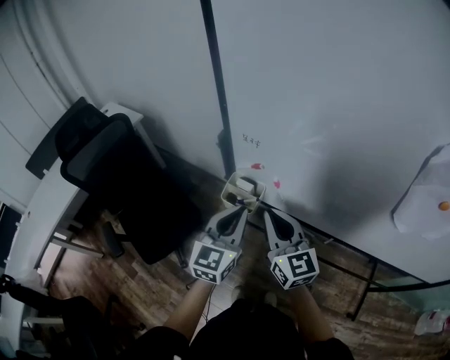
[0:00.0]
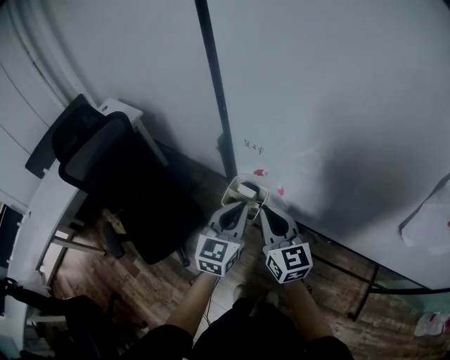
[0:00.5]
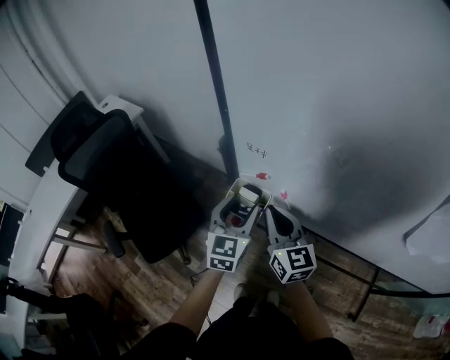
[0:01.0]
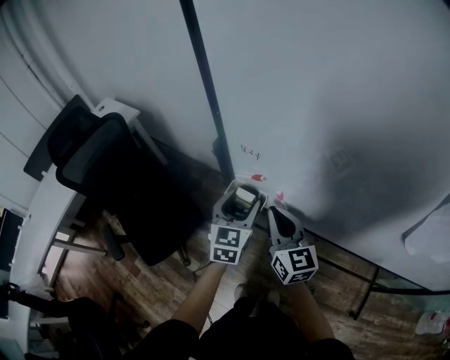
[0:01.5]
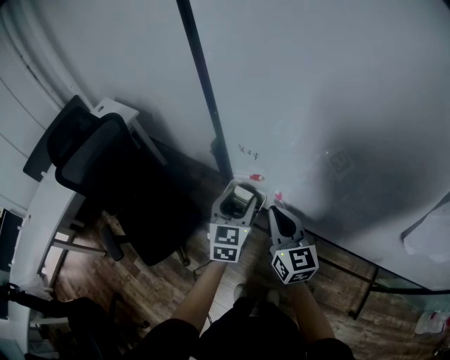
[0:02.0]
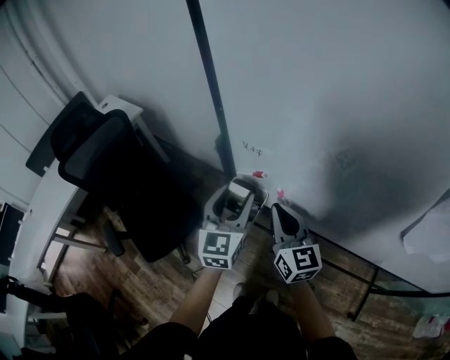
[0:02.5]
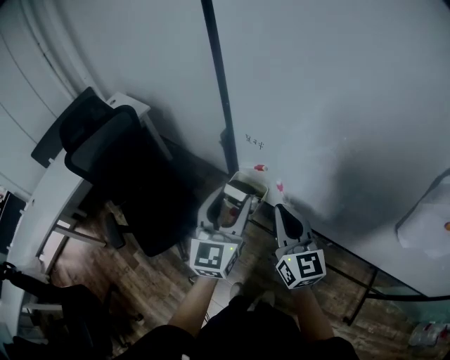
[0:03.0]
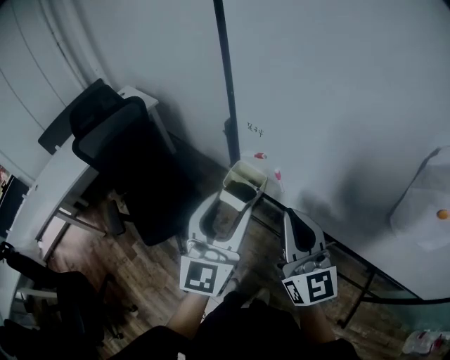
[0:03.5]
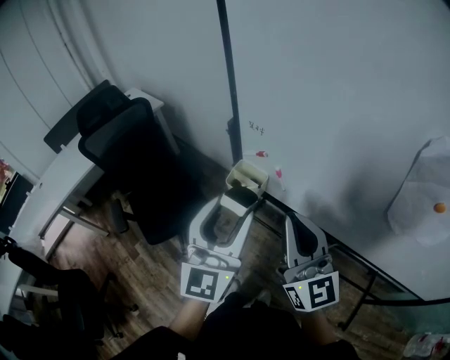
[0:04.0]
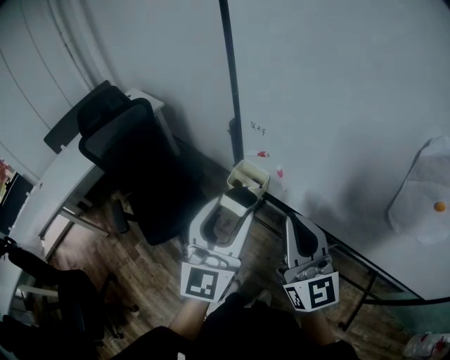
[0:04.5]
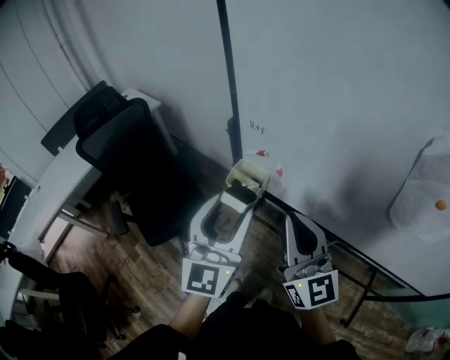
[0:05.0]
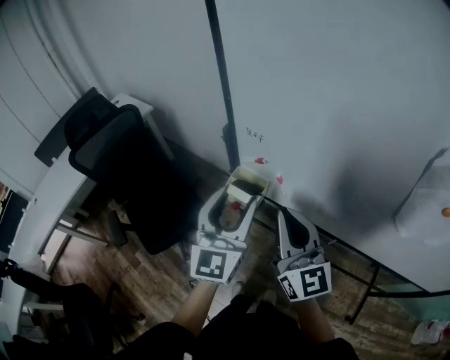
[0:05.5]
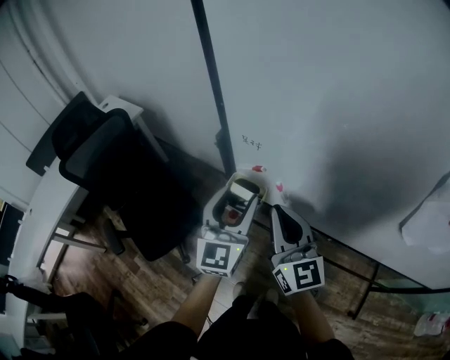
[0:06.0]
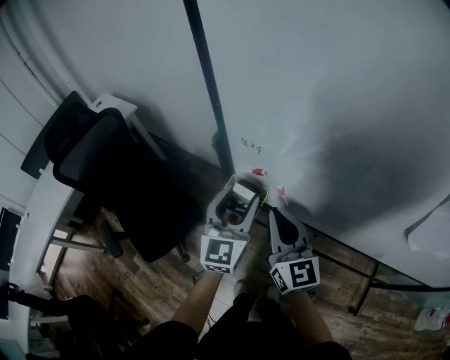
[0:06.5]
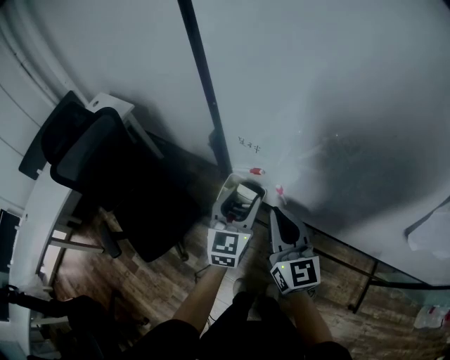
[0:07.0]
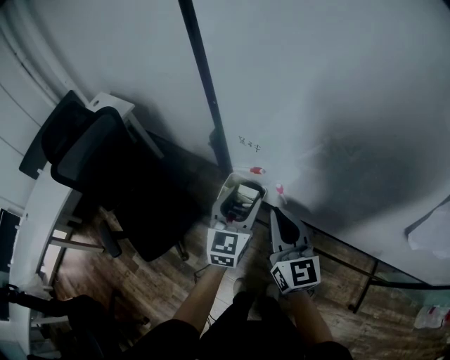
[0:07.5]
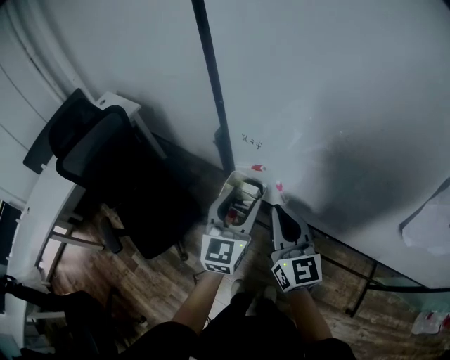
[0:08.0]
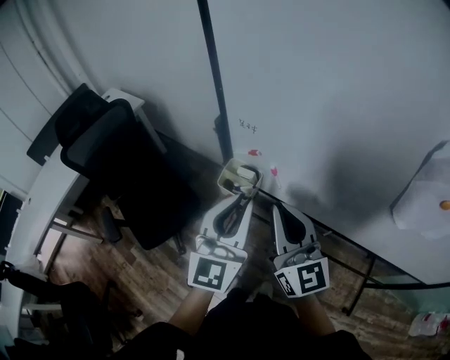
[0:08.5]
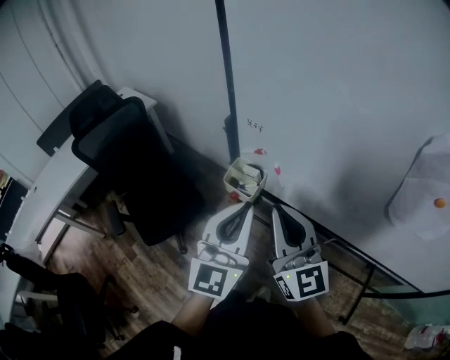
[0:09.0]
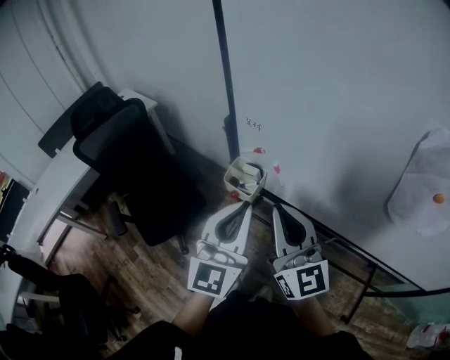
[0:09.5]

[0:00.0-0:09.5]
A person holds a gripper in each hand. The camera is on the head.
0:00.0 to 0:02.0: The left gripper shifts roughly 15 cm forward and downward, and opens its fingers; the right gripper travels forward and downward by about 10 cm.
0:02.0 to 0:04.0: Both grippers move backward and upward, approximately 25 cm. The left gripper changes its angle by roughly 30 degrees; the right gripper swivels approximately 20 degrees.
0:04.0 to 0:05.5: The two grippers go some 5 cm forward.
0:05.5 to 0:07.5: The grippers both shift downward and forward by approximately 15 cm.
0:07.5 to 0:09.5: The two grippers go about 20 cm backward and upward. The left gripper closes up.

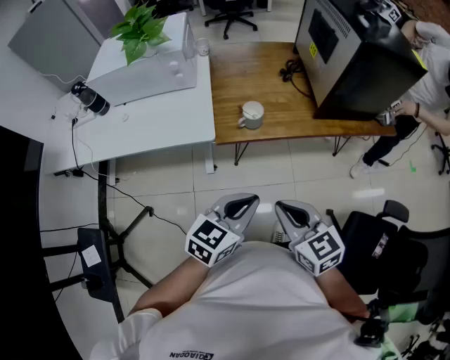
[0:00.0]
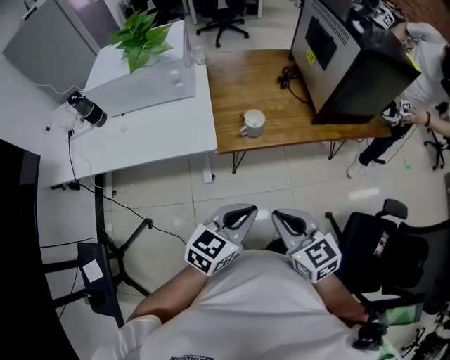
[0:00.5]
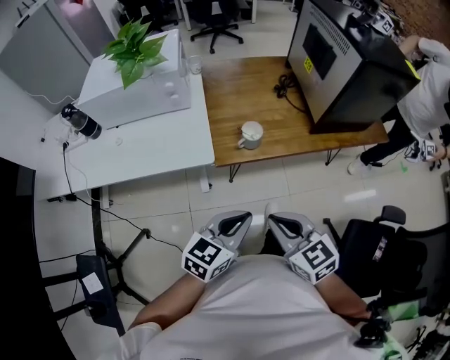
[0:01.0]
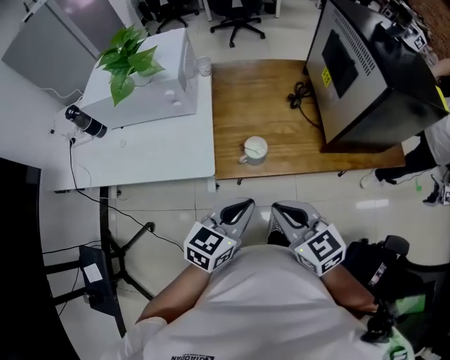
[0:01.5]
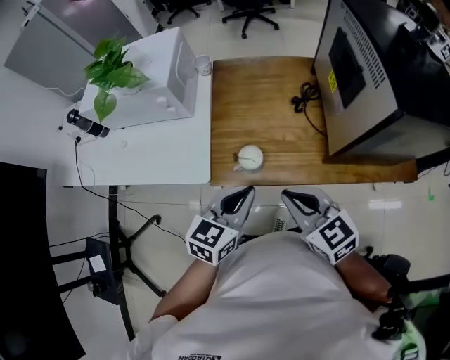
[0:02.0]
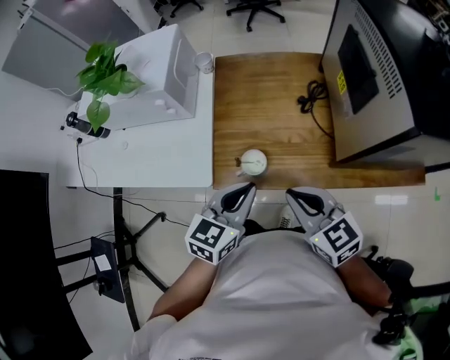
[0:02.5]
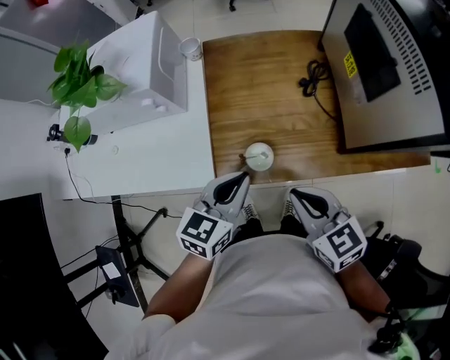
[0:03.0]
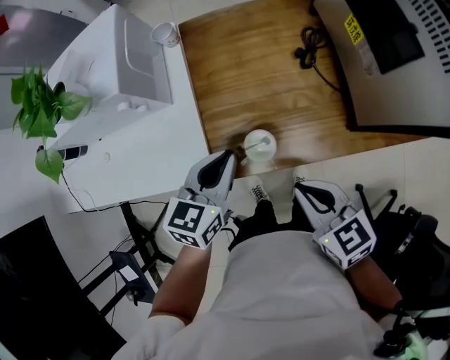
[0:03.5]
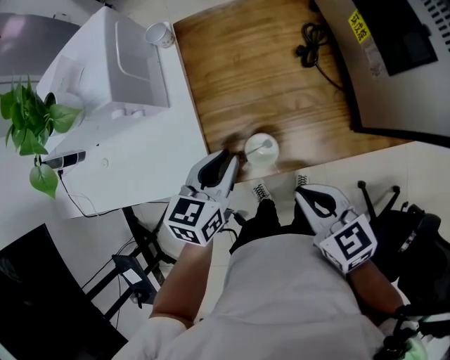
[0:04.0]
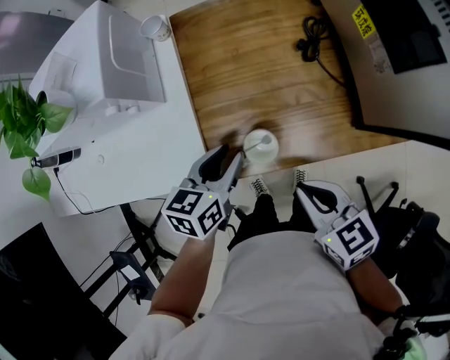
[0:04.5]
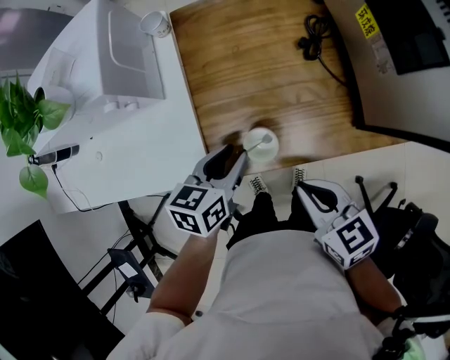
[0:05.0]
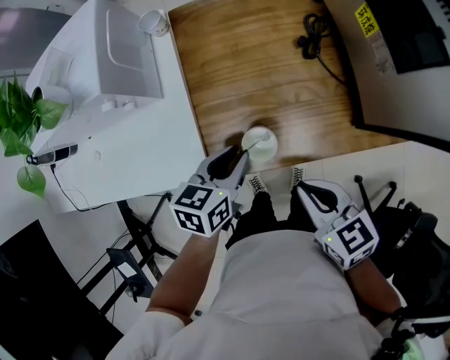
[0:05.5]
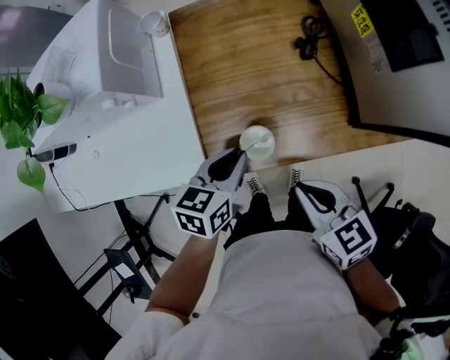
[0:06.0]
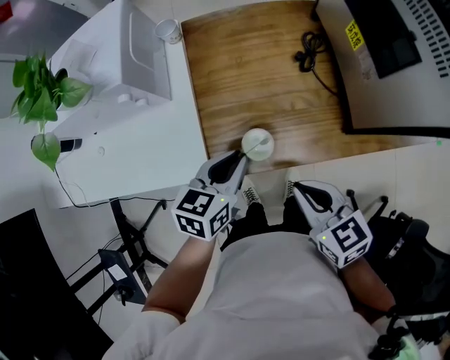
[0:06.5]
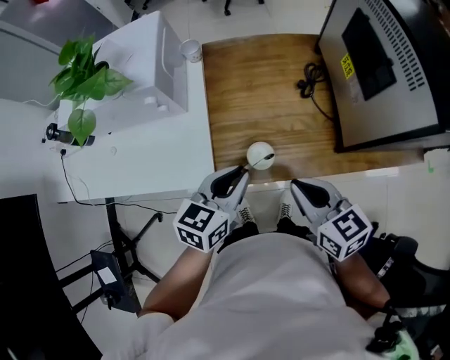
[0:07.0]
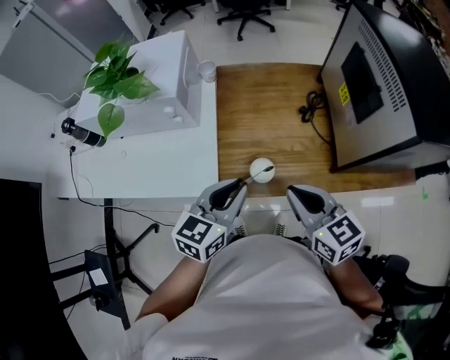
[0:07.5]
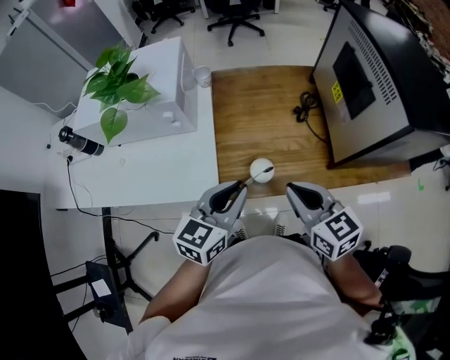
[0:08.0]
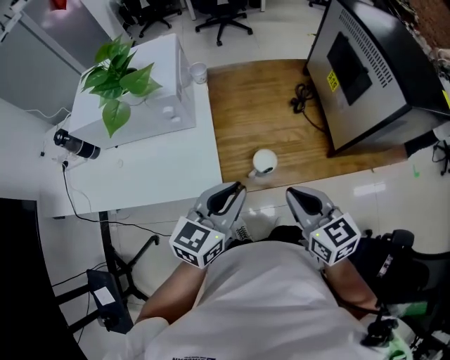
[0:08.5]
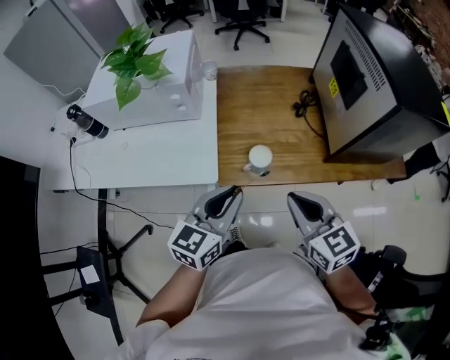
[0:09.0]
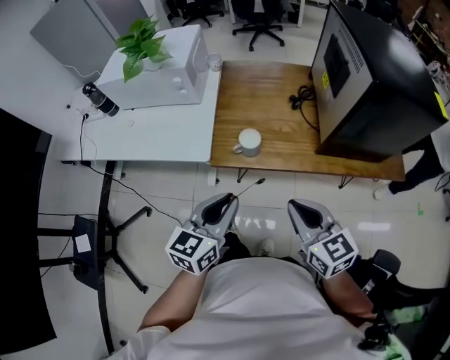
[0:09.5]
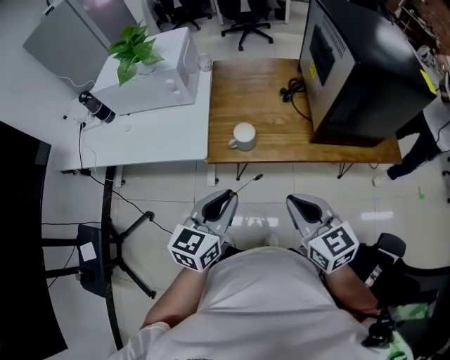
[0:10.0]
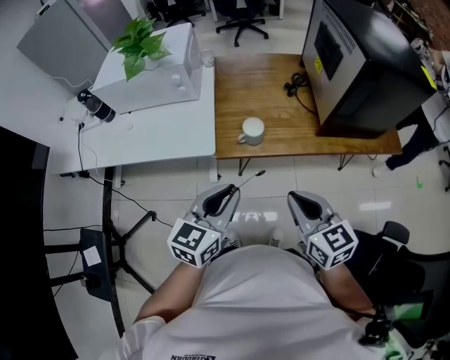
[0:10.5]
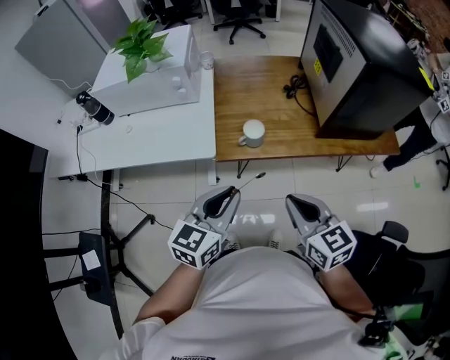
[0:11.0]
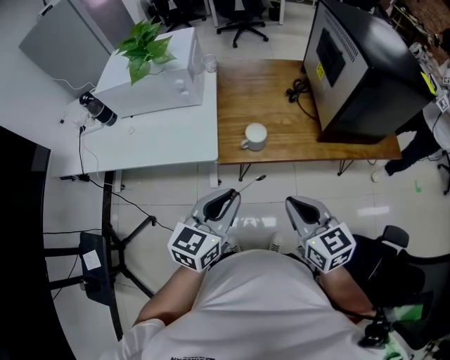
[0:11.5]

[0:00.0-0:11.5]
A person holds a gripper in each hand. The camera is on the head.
0:00.0 to 0:02.0: The grippers both shift forward by some 25 cm.
0:02.0 to 0:04.0: The left gripper moves forward, downward and to the left, some 20 cm; the right gripper goes approximately 10 cm downward, and turns by some 20 degrees.
0:04.0 to 0:06.0: The grippers make only small movements.
0:06.0 to 0:07.5: Both grippers move upward, approximately 15 cm. The left gripper swivels some 20 degrees.
0:07.5 to 0:09.5: The two grippers go approximately 20 cm backward.
0:09.5 to 0:11.5: The left gripper moves about 5 cm. Meanwhile the right gripper goes roughly 5 cm to the left.

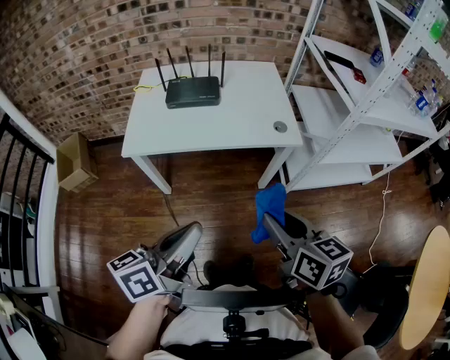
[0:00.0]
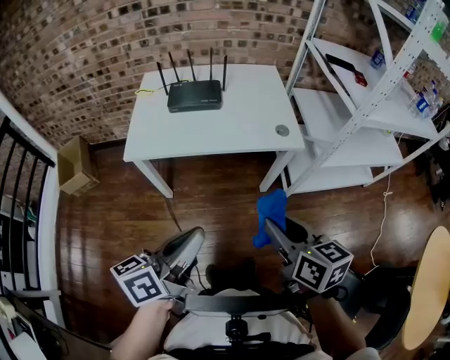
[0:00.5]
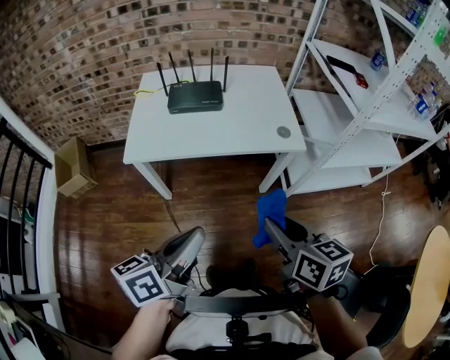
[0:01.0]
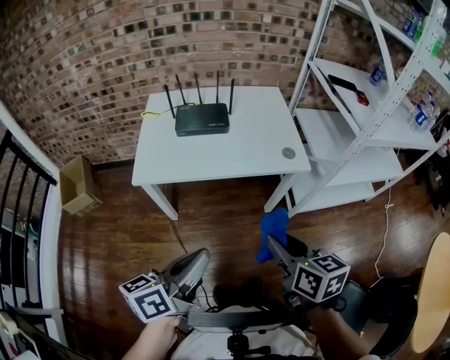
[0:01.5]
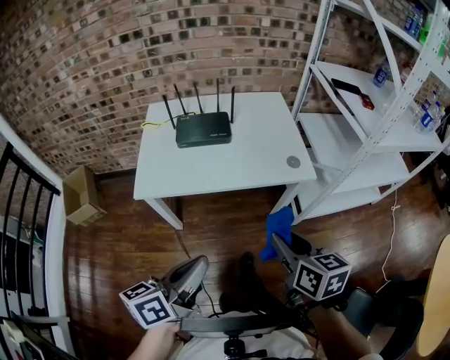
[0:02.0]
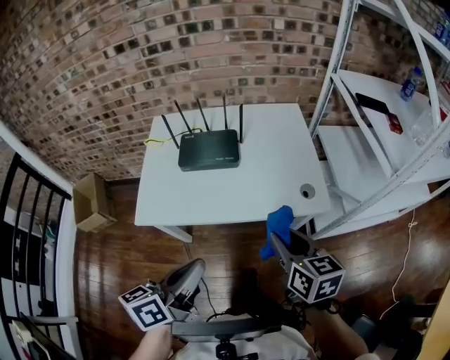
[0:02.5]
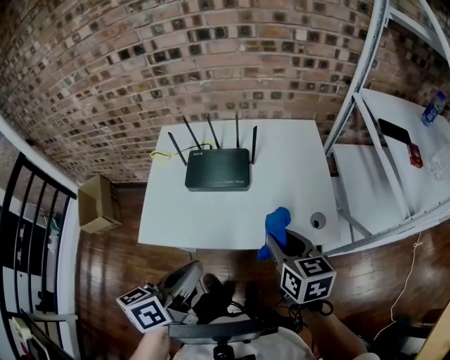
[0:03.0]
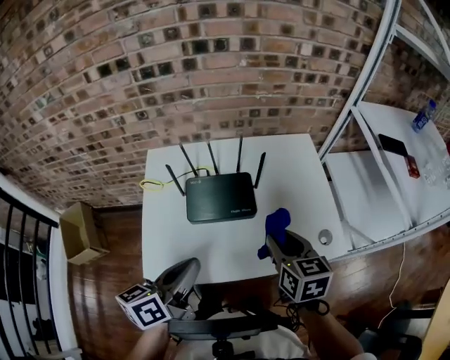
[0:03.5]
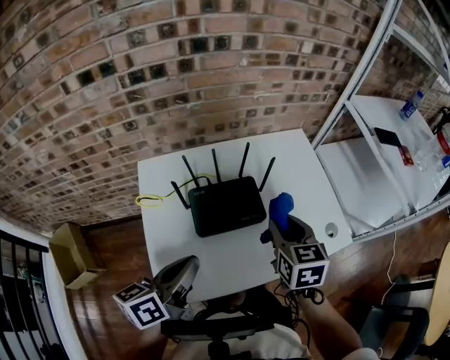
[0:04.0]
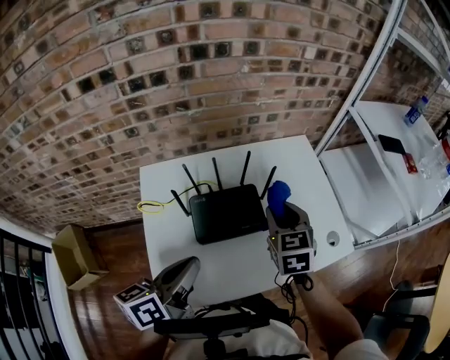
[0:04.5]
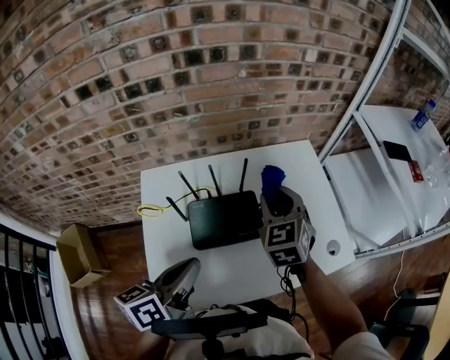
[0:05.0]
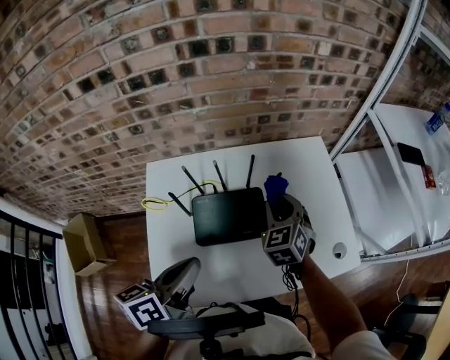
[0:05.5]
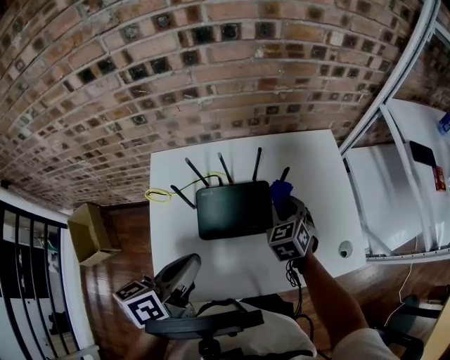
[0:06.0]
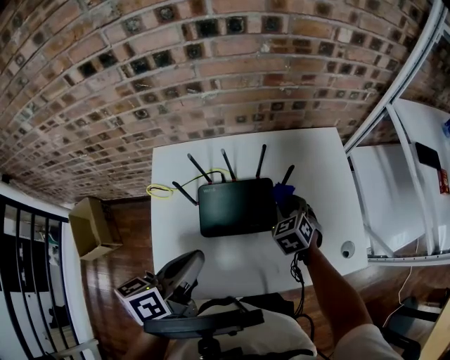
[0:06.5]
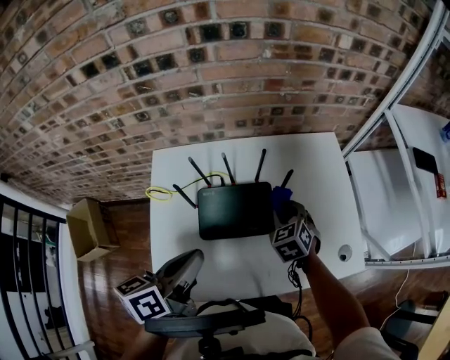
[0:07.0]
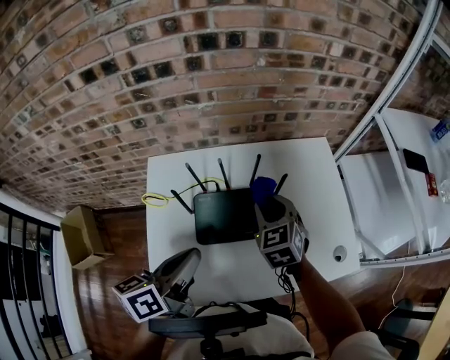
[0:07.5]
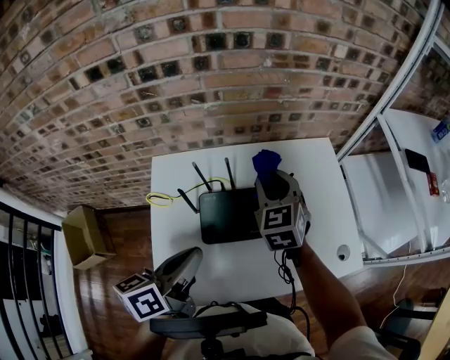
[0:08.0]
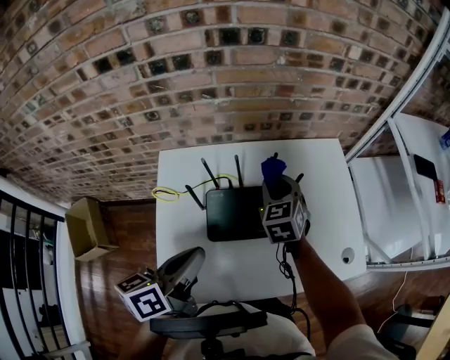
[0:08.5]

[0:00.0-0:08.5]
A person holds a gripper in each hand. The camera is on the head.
0:00.0 to 0:02.0: The left gripper is displaced to the left and forward by roughly 10 cm. Meanwhile the right gripper travels forward by about 10 cm.
0:02.0 to 0:04.0: The pair of grippers is taken forward and to the left, about 50 cm. The right gripper swivels roughly 20 degrees.
0:04.0 to 0:06.5: The left gripper heads forward, covering approximately 10 cm; the right gripper is displaced downward and forward by approximately 20 cm, and rotates approximately 40 degrees.
0:06.5 to 0:08.5: The right gripper goes approximately 15 cm upward and to the left.
